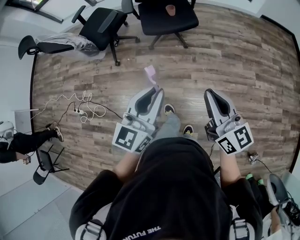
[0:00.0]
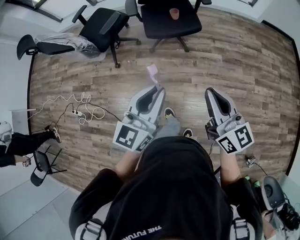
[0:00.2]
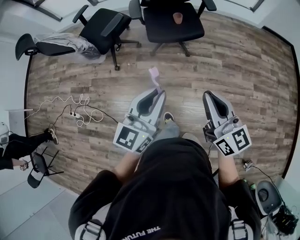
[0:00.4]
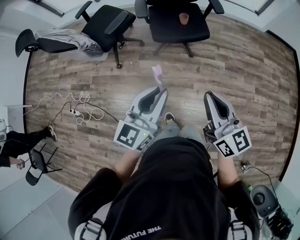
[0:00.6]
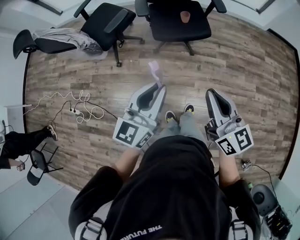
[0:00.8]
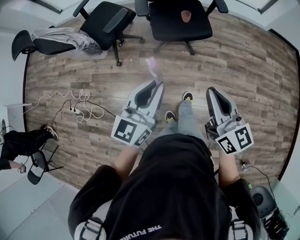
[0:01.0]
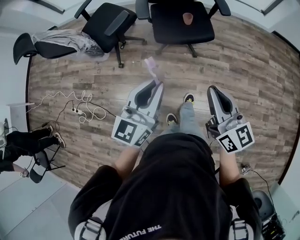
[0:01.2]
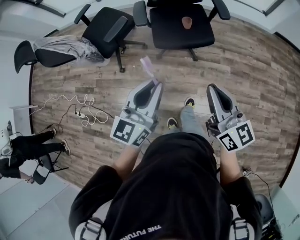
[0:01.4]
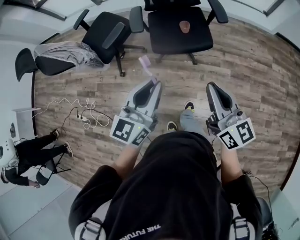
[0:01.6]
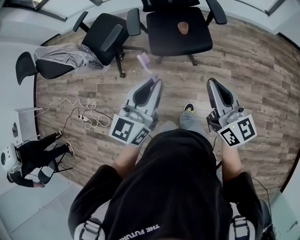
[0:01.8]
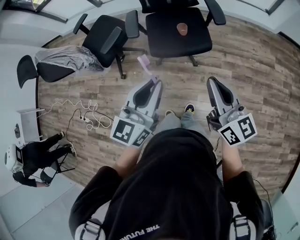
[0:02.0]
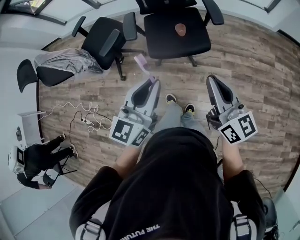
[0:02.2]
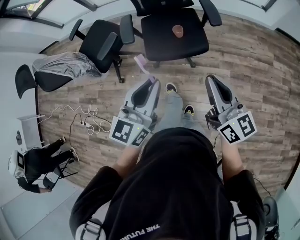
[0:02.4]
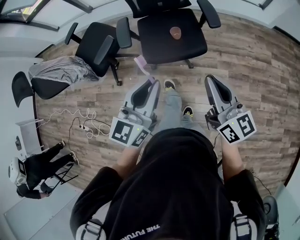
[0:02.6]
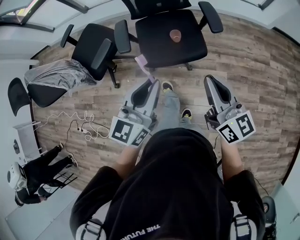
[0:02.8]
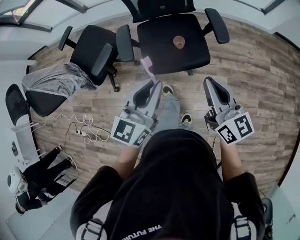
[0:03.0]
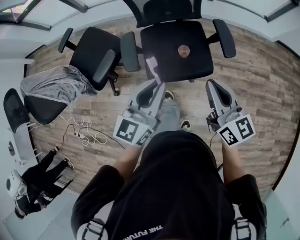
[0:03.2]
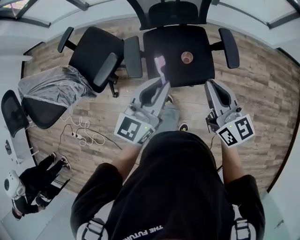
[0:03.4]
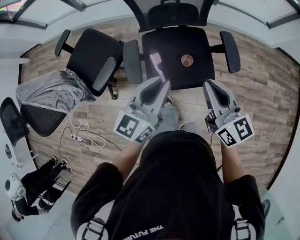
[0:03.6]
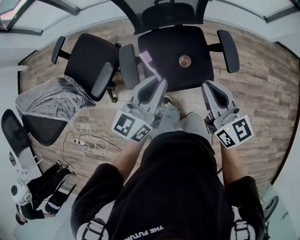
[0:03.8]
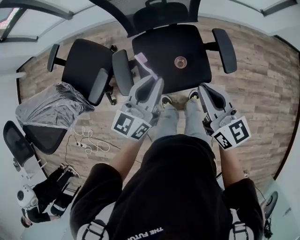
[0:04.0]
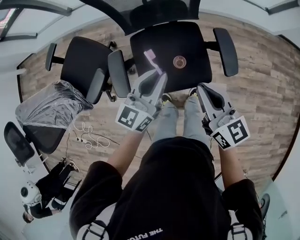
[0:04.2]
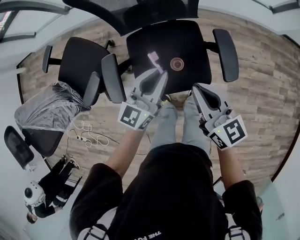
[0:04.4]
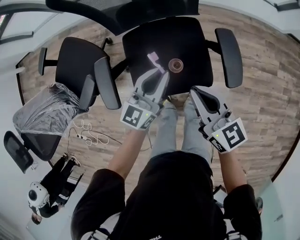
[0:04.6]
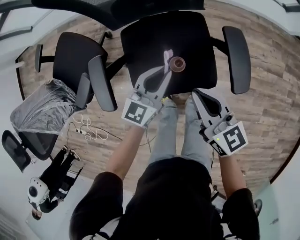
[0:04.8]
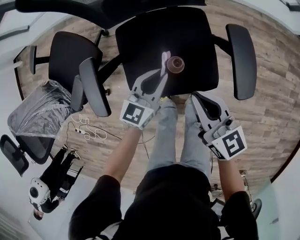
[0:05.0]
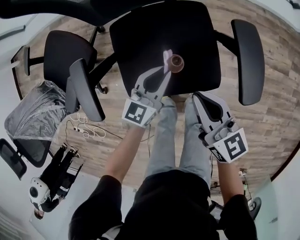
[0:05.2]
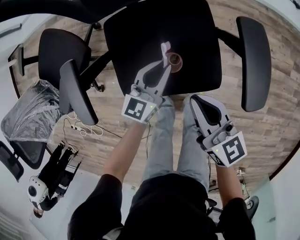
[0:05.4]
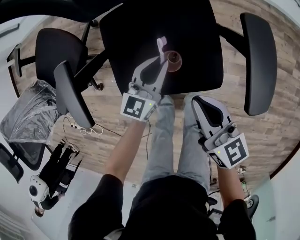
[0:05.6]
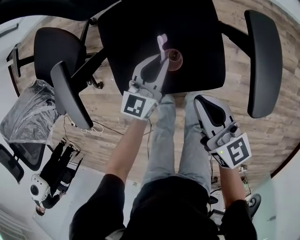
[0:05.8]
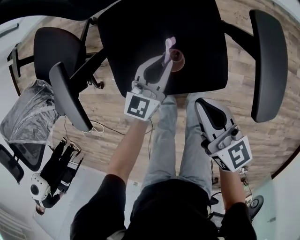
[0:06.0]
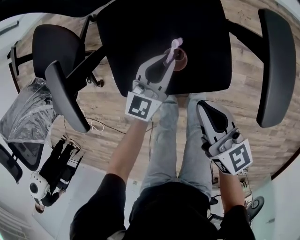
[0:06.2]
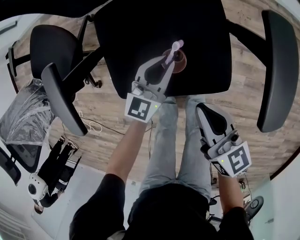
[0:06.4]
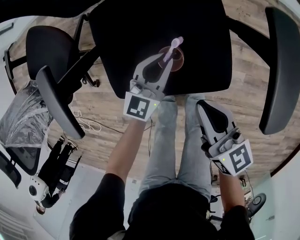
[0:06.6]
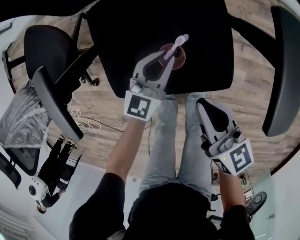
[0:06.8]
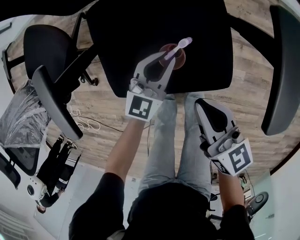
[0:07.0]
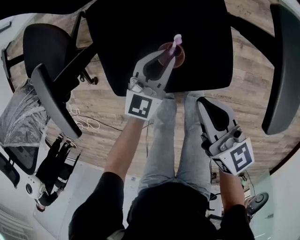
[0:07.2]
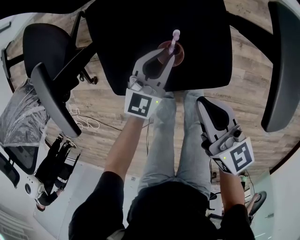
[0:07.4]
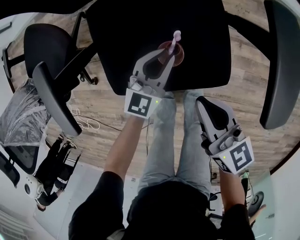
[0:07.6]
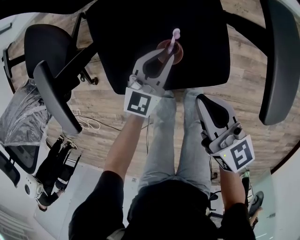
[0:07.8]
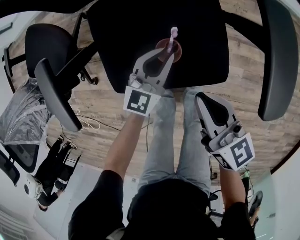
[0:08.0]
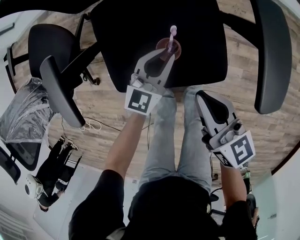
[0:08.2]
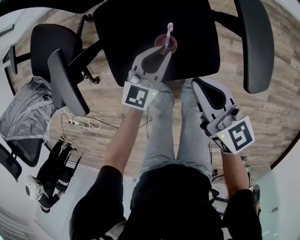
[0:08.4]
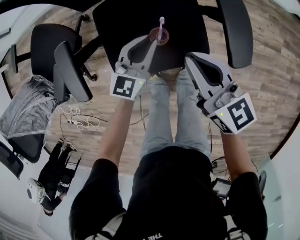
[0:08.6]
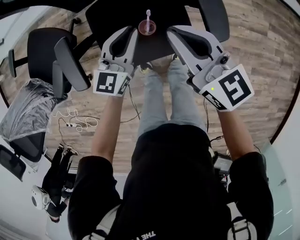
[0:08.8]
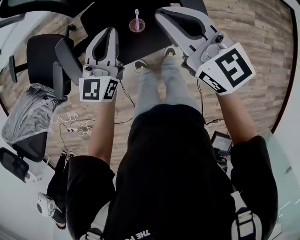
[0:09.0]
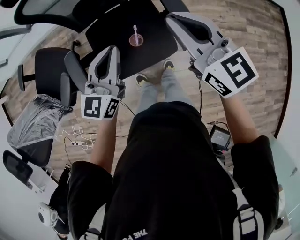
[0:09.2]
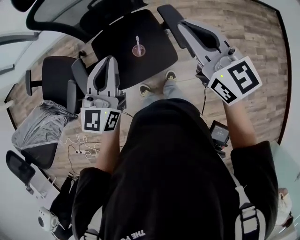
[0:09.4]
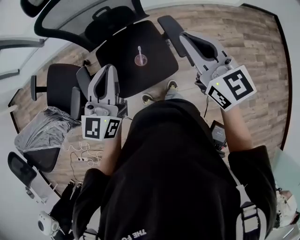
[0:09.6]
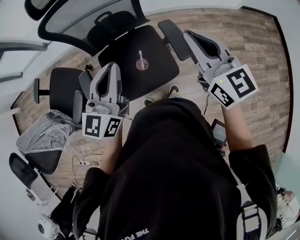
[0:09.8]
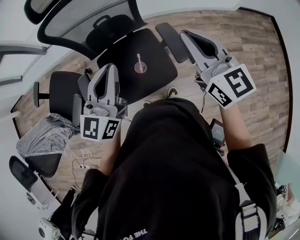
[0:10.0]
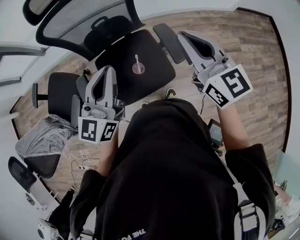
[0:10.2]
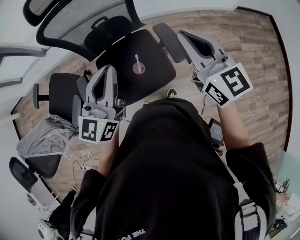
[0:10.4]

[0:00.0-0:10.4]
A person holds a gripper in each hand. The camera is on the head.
0:00.0 to 0:01.4: The two grippers go about 25 cm forward.
0:01.4 to 0:03.0: The grippers both shift forward by roughly 30 cm.
0:03.0 to 0:04.4: The left gripper travels forward and downward by about 35 cm; the right gripper travels forward by approximately 25 cm.
0:04.4 to 0:06.0: The two grippers go about 30 cm downward.
0:06.0 to 0:07.4: The left gripper travels downward by some 5 cm.
0:07.4 to 0:09.0: The two grippers go about 35 cm upward. The right gripper swivels some 30 degrees.
0:09.0 to 0:10.4: The right gripper is displaced upward and to the right by approximately 15 cm. Meanwhile the left gripper travels upward by approximately 20 cm.

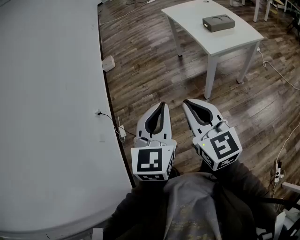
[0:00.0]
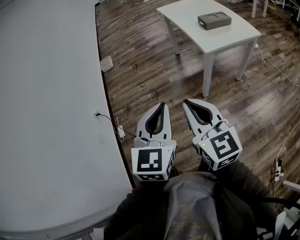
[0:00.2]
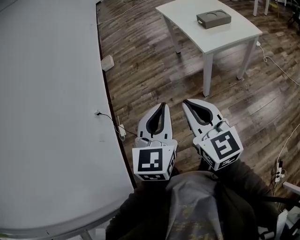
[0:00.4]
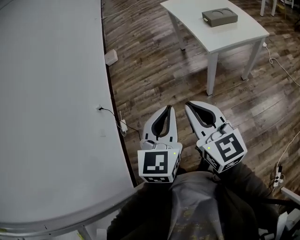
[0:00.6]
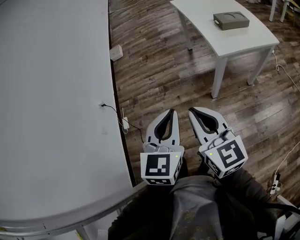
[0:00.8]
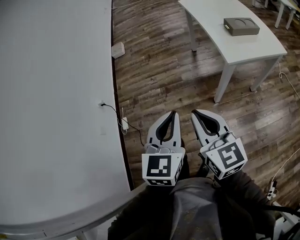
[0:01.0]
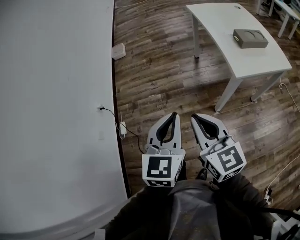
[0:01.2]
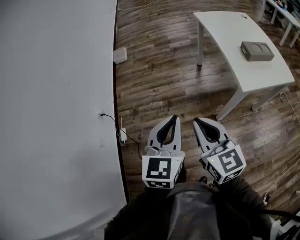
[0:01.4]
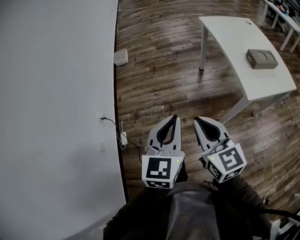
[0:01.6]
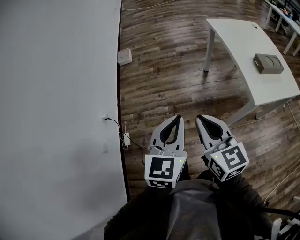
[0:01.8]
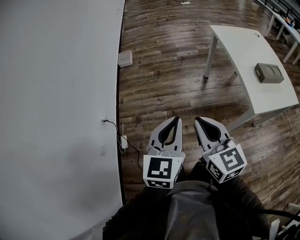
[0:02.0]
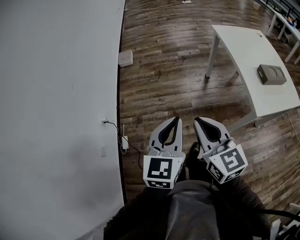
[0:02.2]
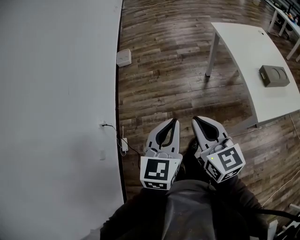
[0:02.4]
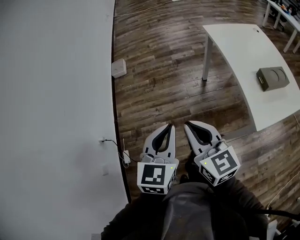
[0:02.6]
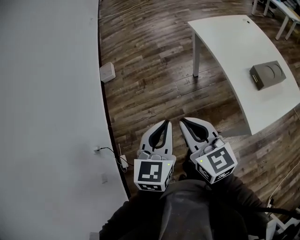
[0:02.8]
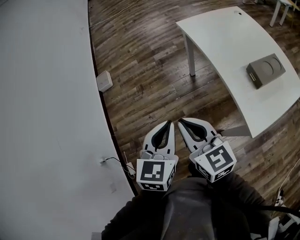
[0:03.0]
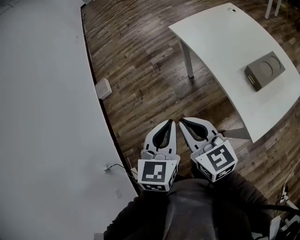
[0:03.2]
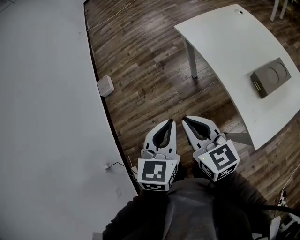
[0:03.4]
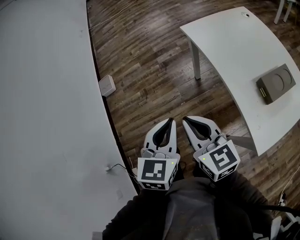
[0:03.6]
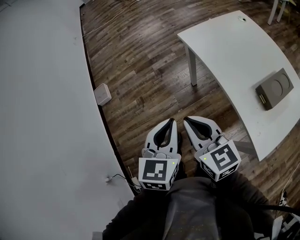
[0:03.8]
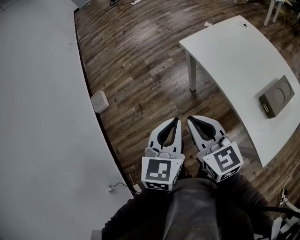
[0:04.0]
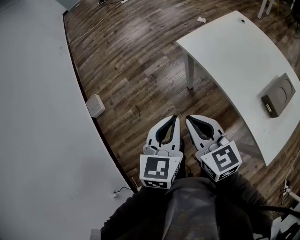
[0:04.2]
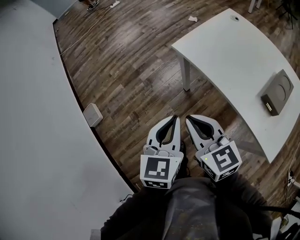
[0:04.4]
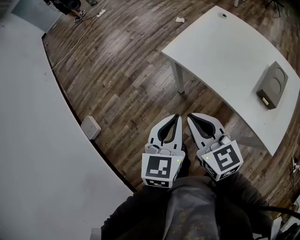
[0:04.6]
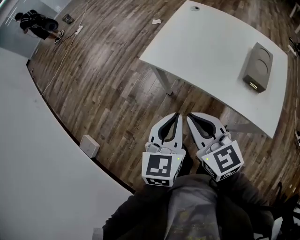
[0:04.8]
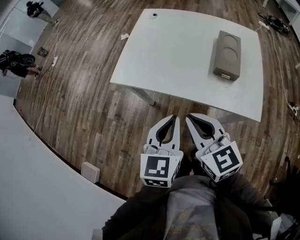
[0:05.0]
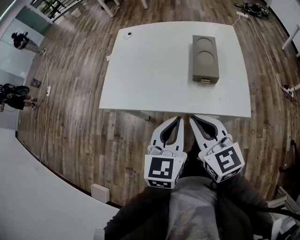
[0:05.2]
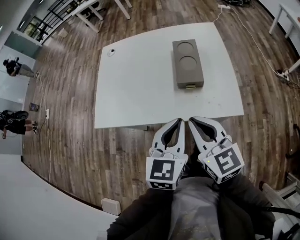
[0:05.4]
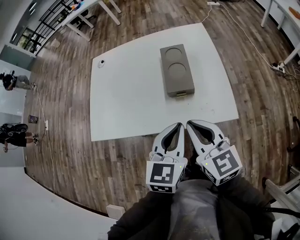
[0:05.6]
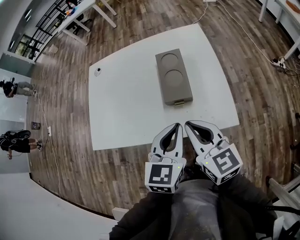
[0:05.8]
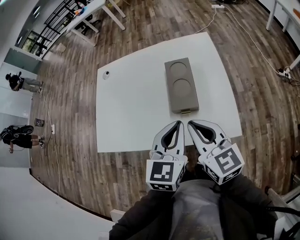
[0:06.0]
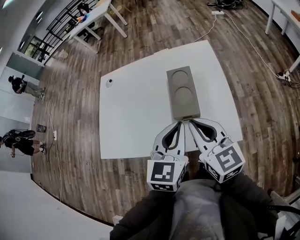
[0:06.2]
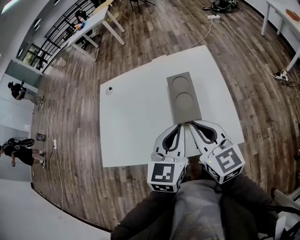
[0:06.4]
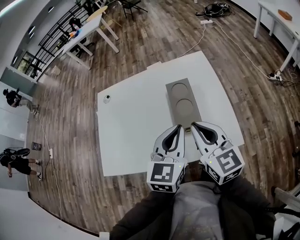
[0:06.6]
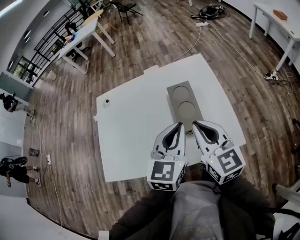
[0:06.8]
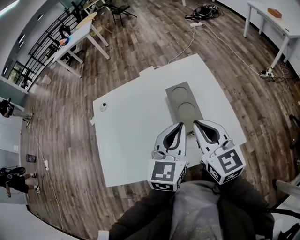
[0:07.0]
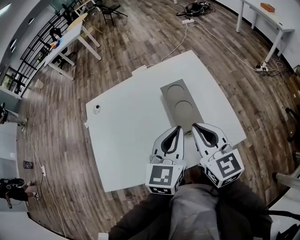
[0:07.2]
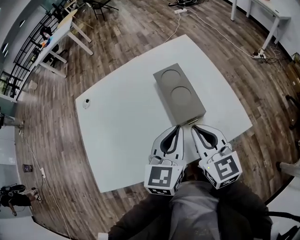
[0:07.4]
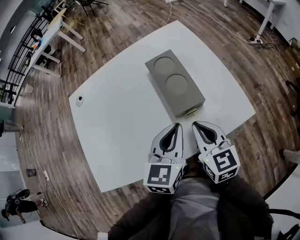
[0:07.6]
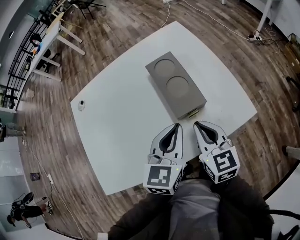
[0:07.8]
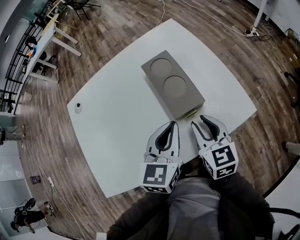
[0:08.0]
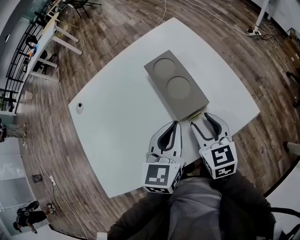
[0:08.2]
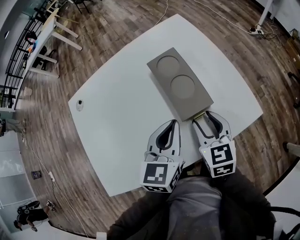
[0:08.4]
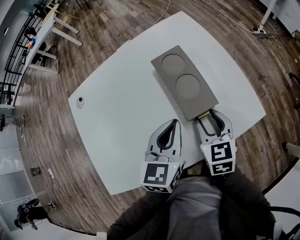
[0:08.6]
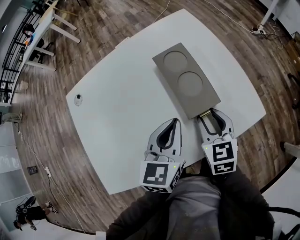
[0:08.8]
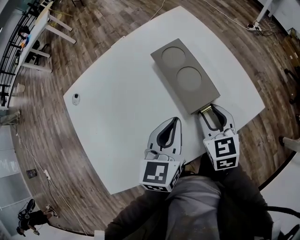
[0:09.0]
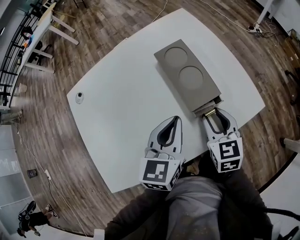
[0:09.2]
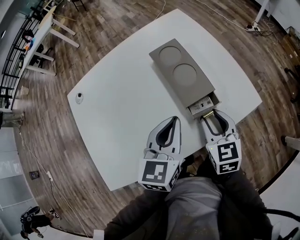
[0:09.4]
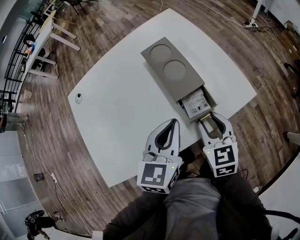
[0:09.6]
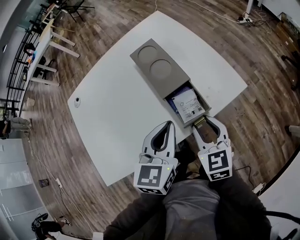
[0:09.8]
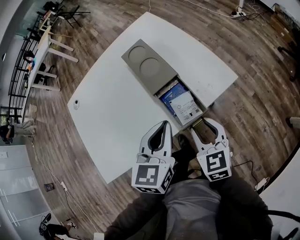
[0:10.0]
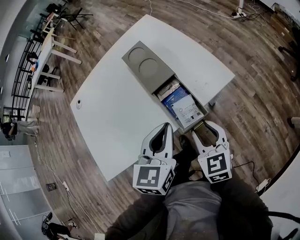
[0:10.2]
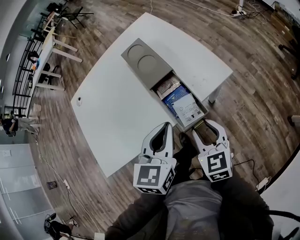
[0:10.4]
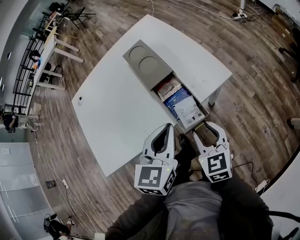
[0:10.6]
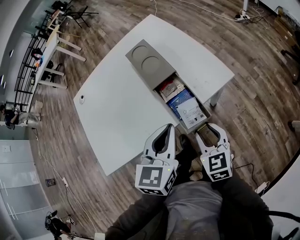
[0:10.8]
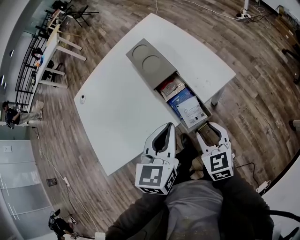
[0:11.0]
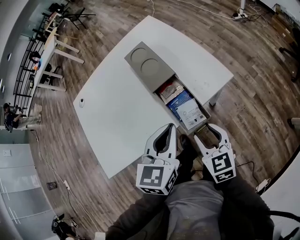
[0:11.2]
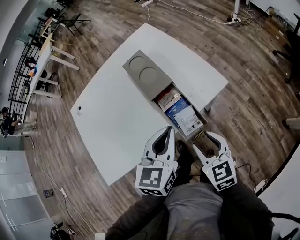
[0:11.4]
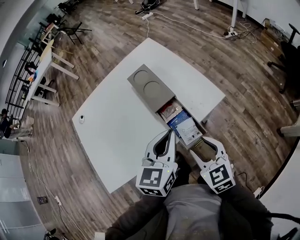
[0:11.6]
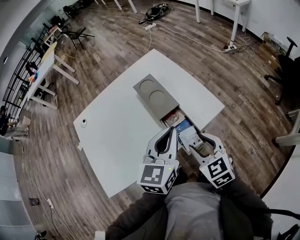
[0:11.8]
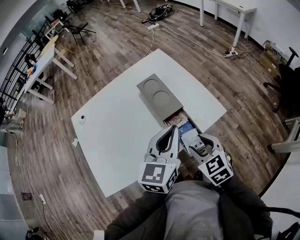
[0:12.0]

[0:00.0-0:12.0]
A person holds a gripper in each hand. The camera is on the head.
0:00.0 to 0:01.6: Both grippers travel together forward, approximately 25 cm.
0:01.6 to 0:03.0: The grippers both shift forward by some 25 cm.
0:03.0 to 0:04.4: The two grippers go about 30 cm forward. The right gripper swivels some 20 degrees.
0:04.4 to 0:06.0: The left gripper shifts by approximately 40 cm, and turns by some 60 degrees; the right gripper shifts by roughly 40 cm, and rotates roughly 60 degrees.
0:06.0 to 0:07.6: The left gripper goes about 10 cm downward and to the left, and rotates roughly 20 degrees. The right gripper heads downward, covering about 10 cm, and rotates some 30 degrees.
0:07.6 to 0:09.0: The right gripper shifts by about 5 cm, and opens.
0:09.0 to 0:10.4: The grippers both shift backward and to the right by roughly 15 cm.
0:10.4 to 0:12.0: The left gripper shifts some 10 cm upward and forward. Meanwhile the right gripper heads upward, covering roughly 5 cm.

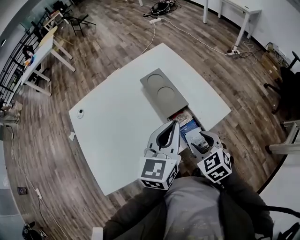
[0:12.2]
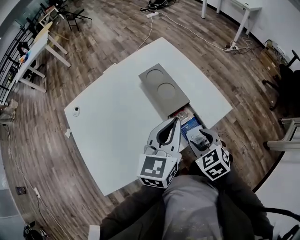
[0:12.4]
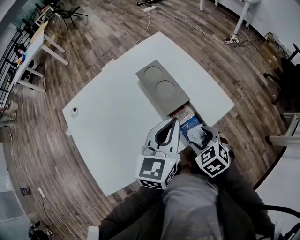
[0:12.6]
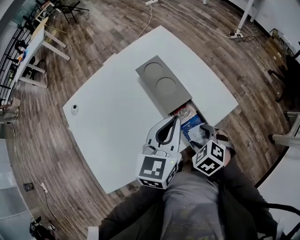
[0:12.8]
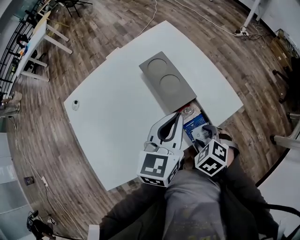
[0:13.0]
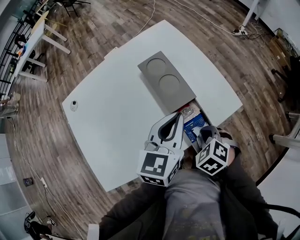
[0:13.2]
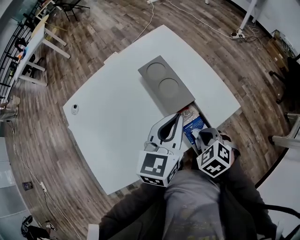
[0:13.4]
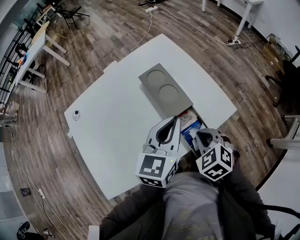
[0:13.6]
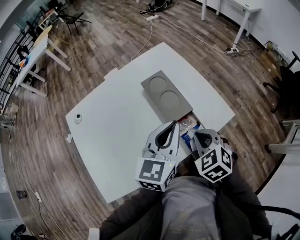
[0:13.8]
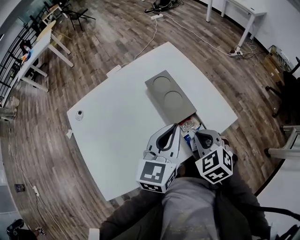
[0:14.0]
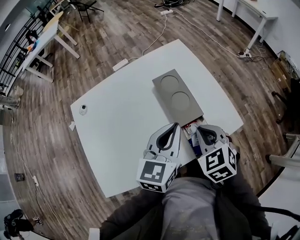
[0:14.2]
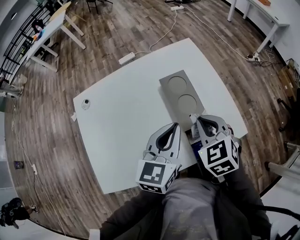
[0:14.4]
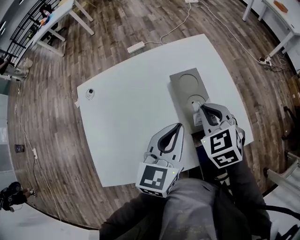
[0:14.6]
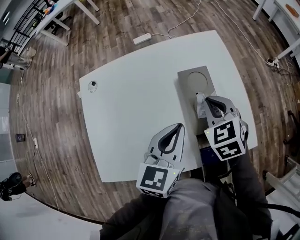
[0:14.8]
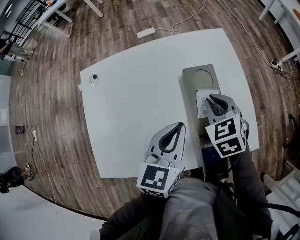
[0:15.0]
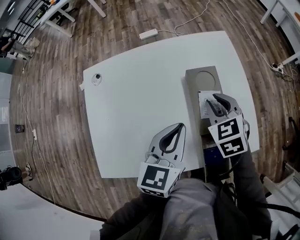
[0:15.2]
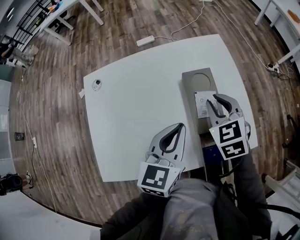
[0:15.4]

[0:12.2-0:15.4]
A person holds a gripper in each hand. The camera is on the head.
0:12.2 to 0:13.8: The right gripper reaches approximately 5 cm downward, then returns, and closes its fingers.
0:13.8 to 0:15.4: The left gripper travels to the left by some 10 cm, and swivels about 20 degrees, while the right gripper shifts roughly 20 cm forward.
